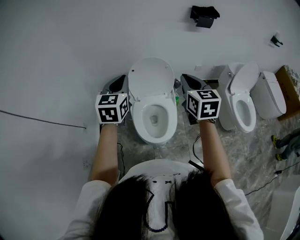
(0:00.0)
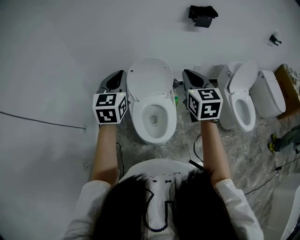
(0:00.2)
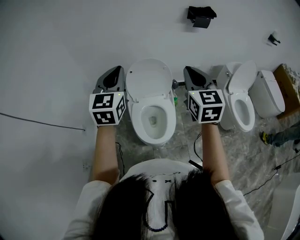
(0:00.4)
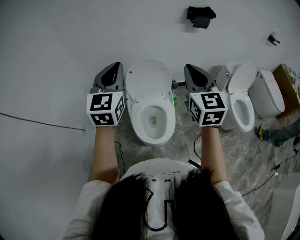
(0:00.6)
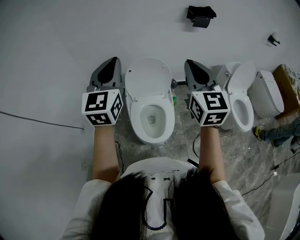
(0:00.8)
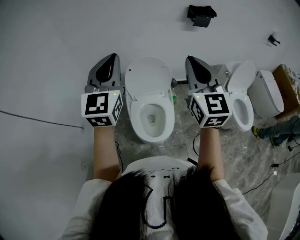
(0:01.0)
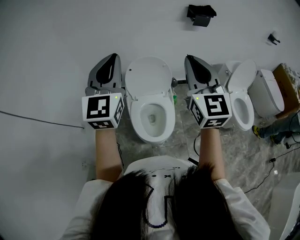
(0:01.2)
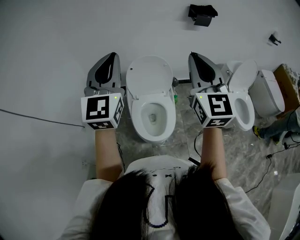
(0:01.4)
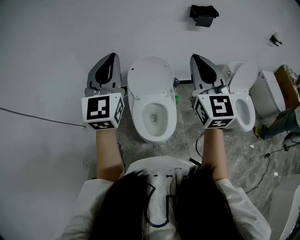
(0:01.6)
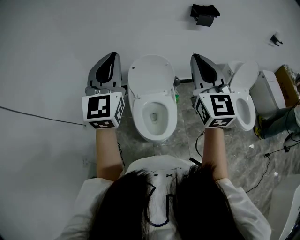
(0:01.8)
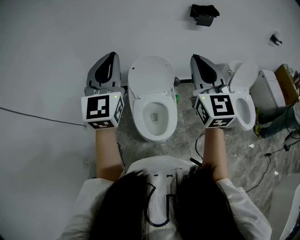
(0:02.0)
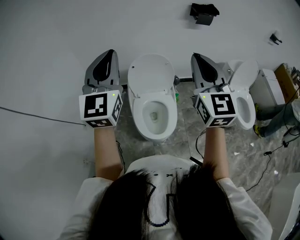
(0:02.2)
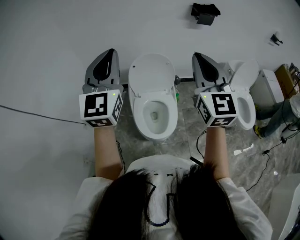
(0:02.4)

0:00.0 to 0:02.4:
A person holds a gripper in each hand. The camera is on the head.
0:00.0 to 0:01.2: The two grippers go about 15 cm upward. The left gripper turns by some 30 degrees, while the right gripper turns by approximately 30 degrees.
0:01.2 to 0:02.4: The grippers stay close to where they were, moving slightly.

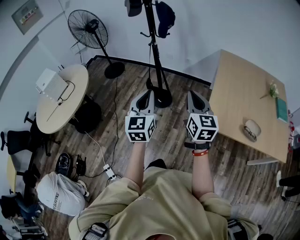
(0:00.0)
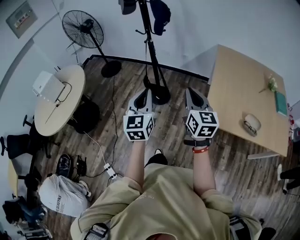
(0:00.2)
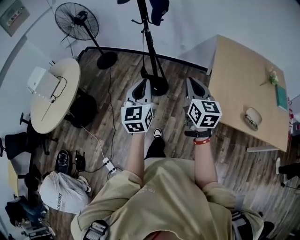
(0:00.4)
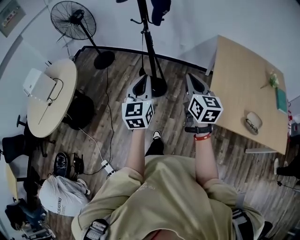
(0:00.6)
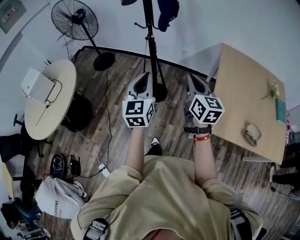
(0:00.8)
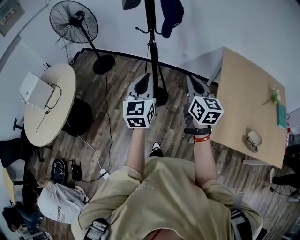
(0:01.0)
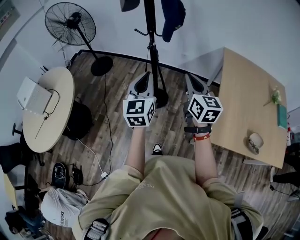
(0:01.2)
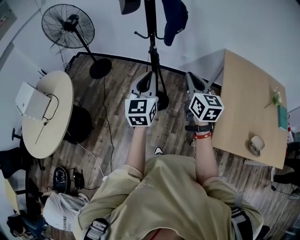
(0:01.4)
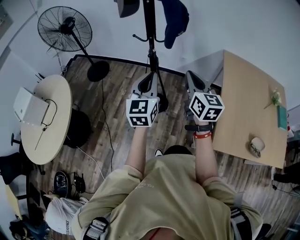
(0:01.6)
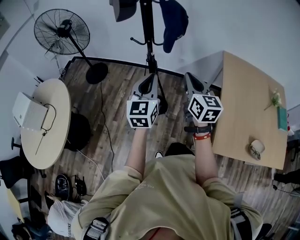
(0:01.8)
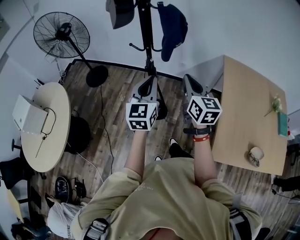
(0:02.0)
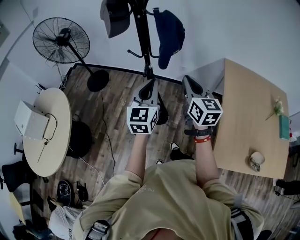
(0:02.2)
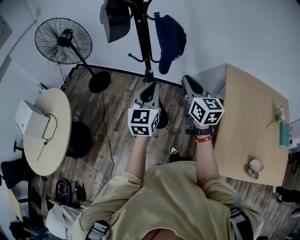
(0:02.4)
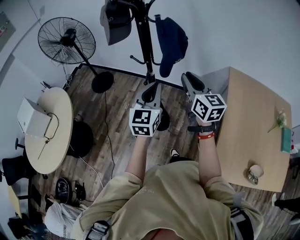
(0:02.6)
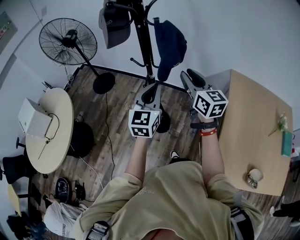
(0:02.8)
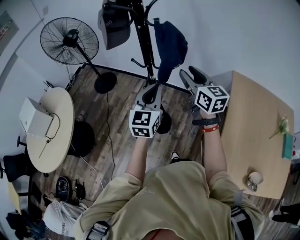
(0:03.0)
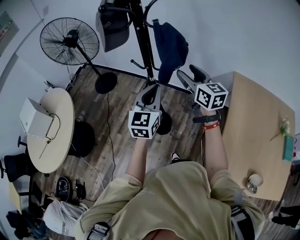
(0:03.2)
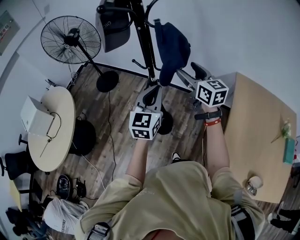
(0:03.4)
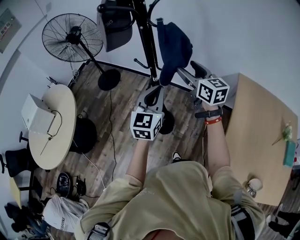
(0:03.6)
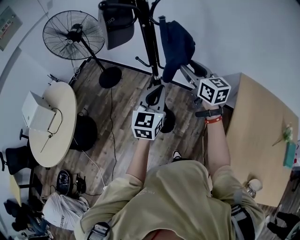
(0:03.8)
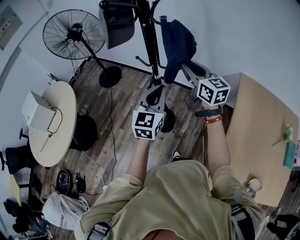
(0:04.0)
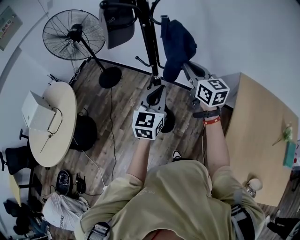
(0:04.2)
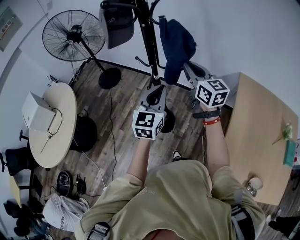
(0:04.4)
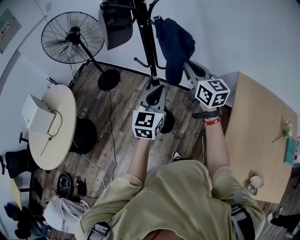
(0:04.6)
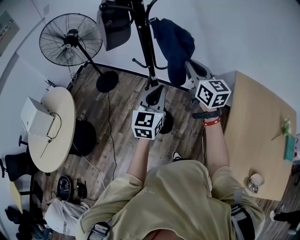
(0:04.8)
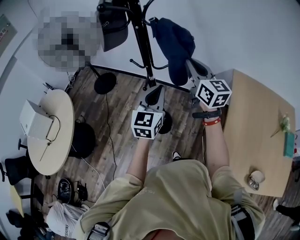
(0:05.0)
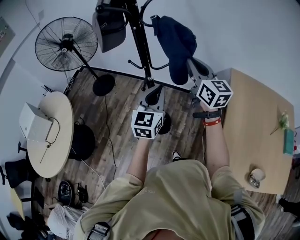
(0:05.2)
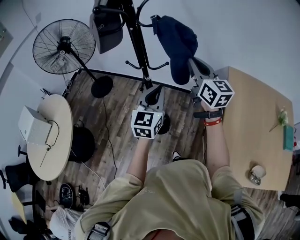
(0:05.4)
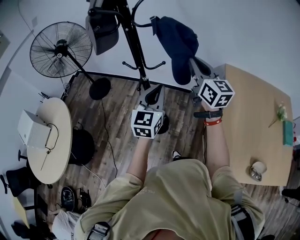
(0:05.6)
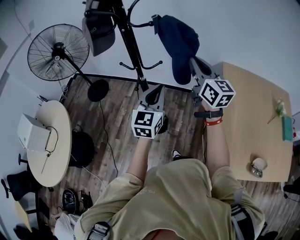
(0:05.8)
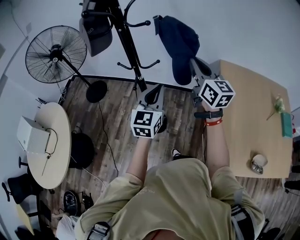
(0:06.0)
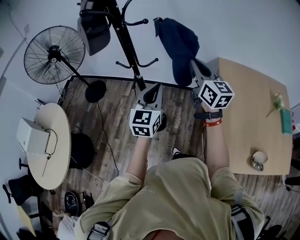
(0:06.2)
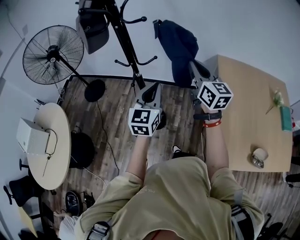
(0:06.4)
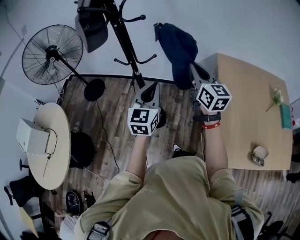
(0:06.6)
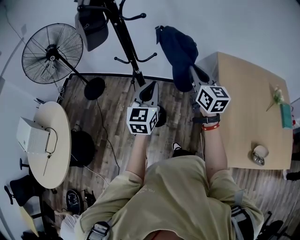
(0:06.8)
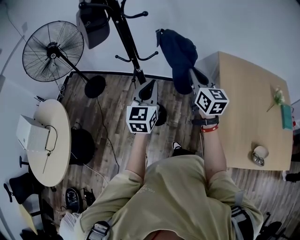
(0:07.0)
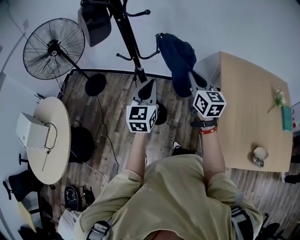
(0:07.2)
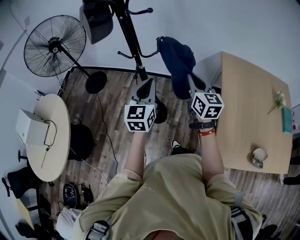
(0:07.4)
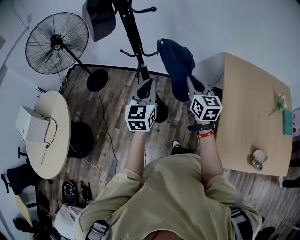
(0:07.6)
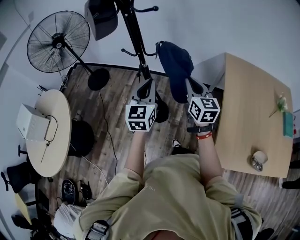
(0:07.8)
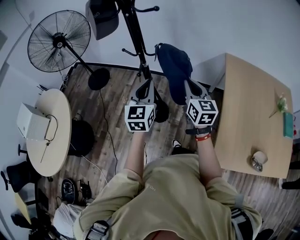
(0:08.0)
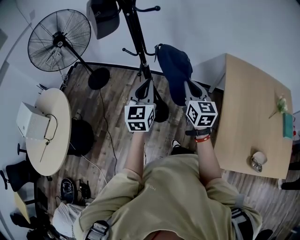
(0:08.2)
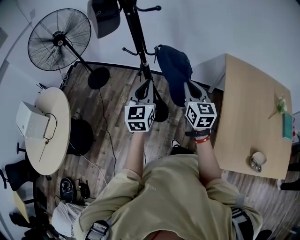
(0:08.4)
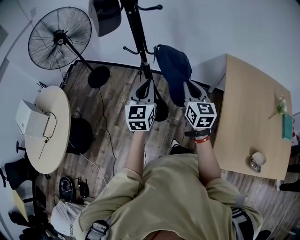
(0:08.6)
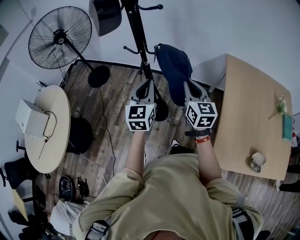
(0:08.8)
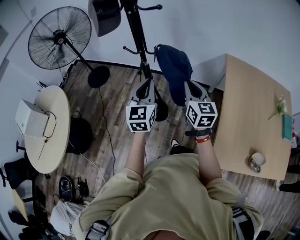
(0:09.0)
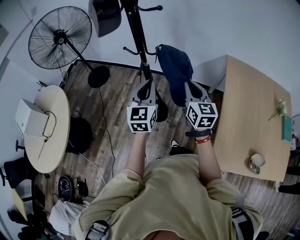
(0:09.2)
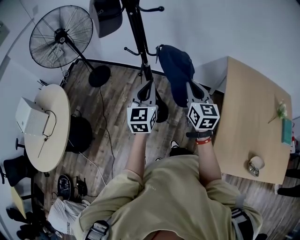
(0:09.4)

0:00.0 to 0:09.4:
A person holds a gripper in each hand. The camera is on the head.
0:00.0 to 0:01.6: The two grippers go some 35 cm forward.
0:01.6 to 0:03.2: The right gripper travels forward by some 25 cm, and opens up, while the left gripper moves forward and to the right, approximately 20 cm.
0:03.2 to 0:04.8: The right gripper closes its fingers.
0:04.8 to 0:06.2: The left gripper moves approximately 5 cm. Meanwhile the right gripper shifts about 10 cm to the right and backward.
0:06.2 to 0:07.8: The right gripper travels downward by roughly 10 cm, while the left gripper shifts approximately 5 cm to the left.
0:07.8 to 0:09.4: The grippers move only a little.

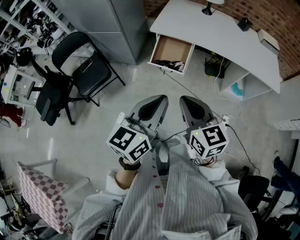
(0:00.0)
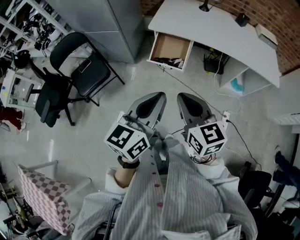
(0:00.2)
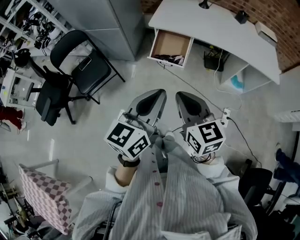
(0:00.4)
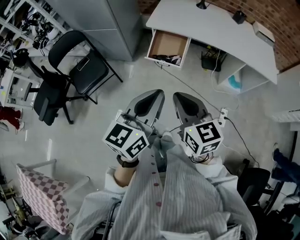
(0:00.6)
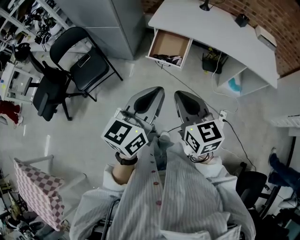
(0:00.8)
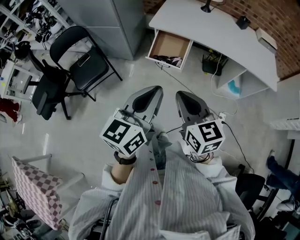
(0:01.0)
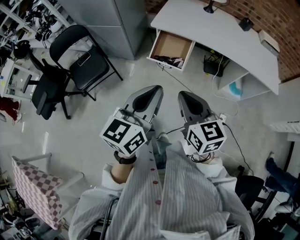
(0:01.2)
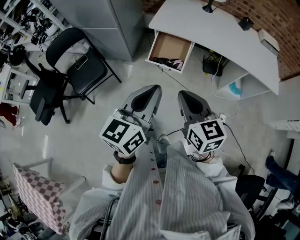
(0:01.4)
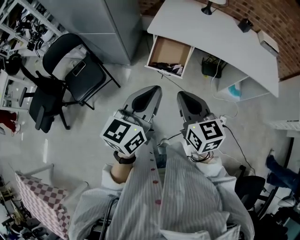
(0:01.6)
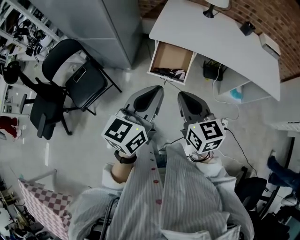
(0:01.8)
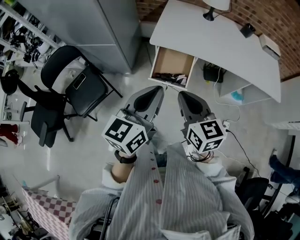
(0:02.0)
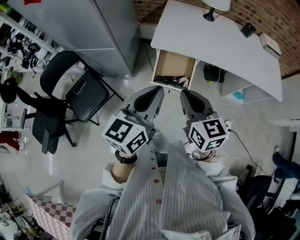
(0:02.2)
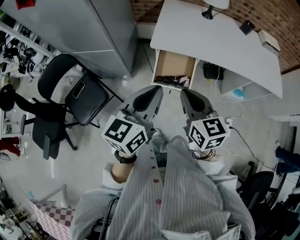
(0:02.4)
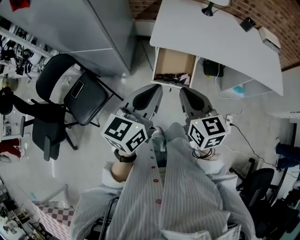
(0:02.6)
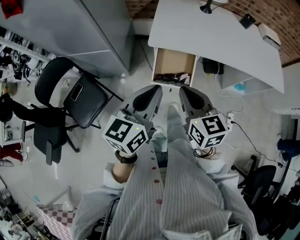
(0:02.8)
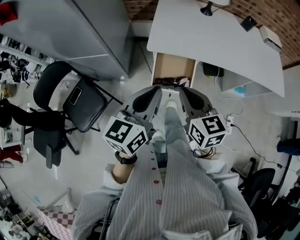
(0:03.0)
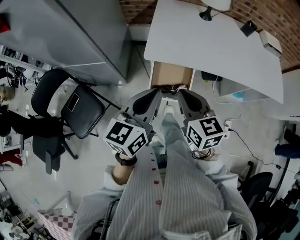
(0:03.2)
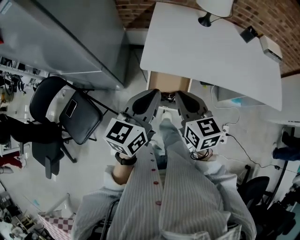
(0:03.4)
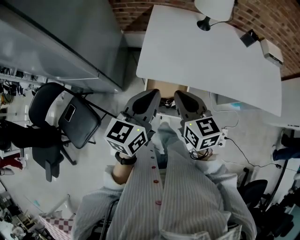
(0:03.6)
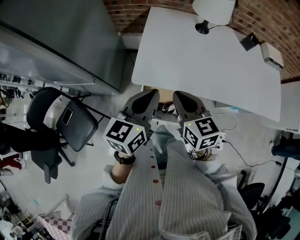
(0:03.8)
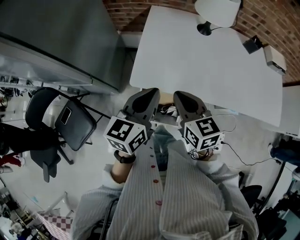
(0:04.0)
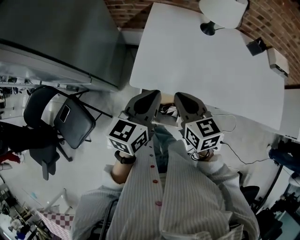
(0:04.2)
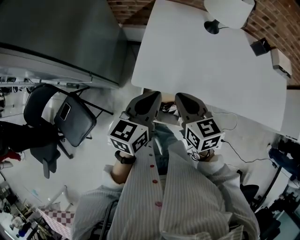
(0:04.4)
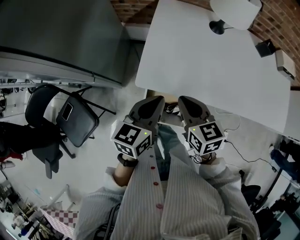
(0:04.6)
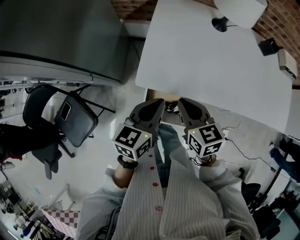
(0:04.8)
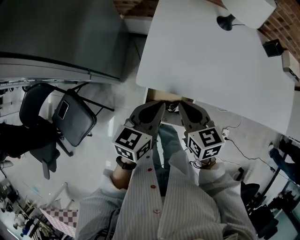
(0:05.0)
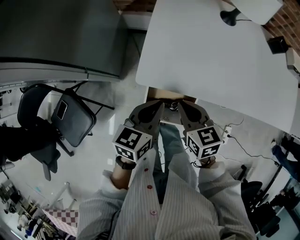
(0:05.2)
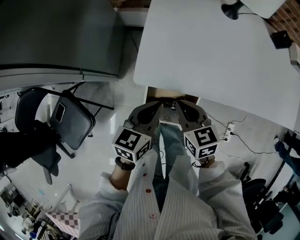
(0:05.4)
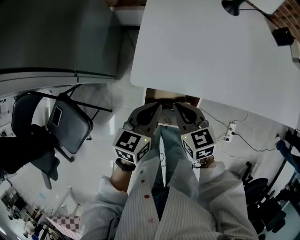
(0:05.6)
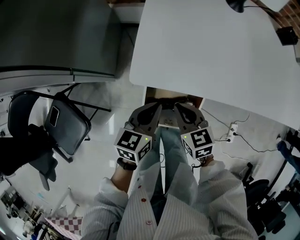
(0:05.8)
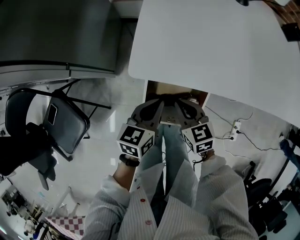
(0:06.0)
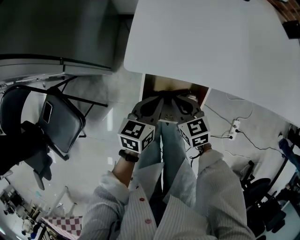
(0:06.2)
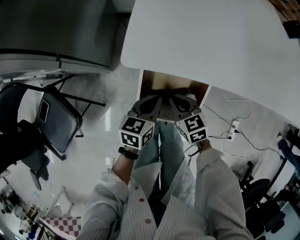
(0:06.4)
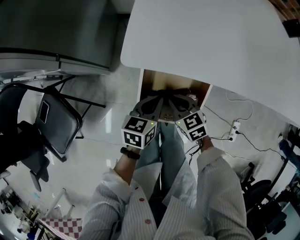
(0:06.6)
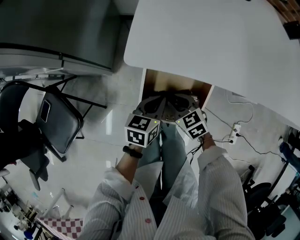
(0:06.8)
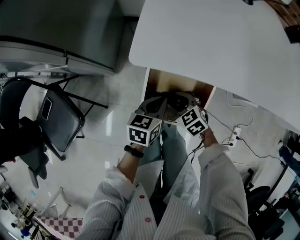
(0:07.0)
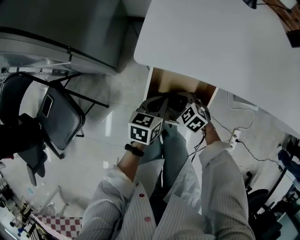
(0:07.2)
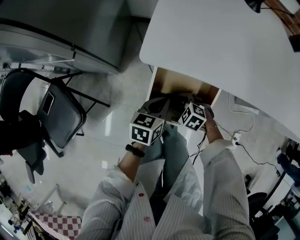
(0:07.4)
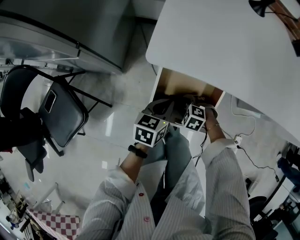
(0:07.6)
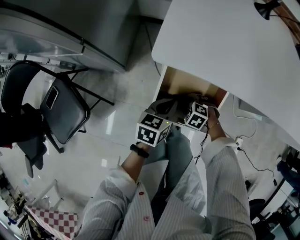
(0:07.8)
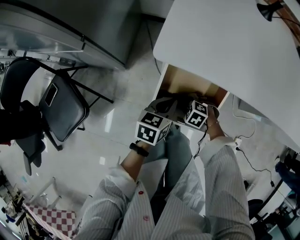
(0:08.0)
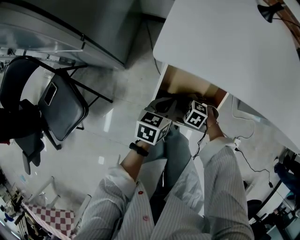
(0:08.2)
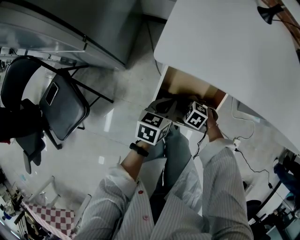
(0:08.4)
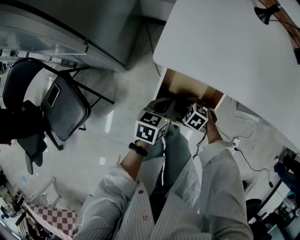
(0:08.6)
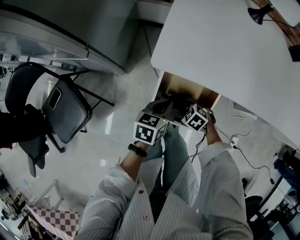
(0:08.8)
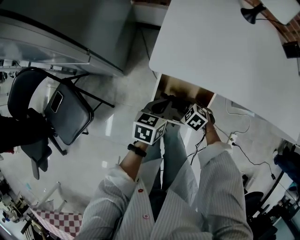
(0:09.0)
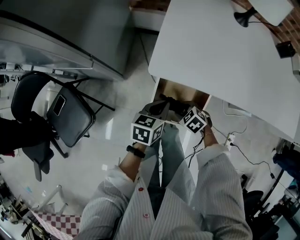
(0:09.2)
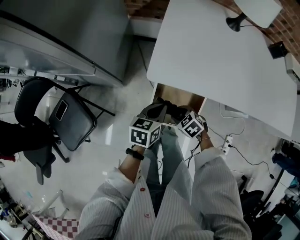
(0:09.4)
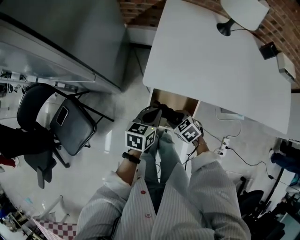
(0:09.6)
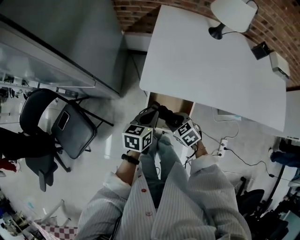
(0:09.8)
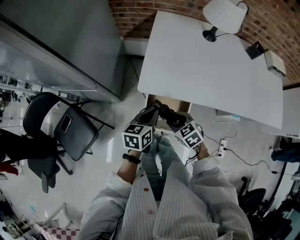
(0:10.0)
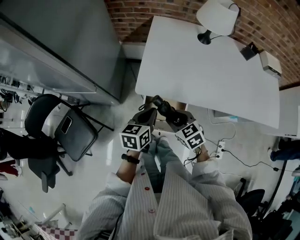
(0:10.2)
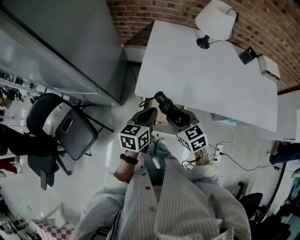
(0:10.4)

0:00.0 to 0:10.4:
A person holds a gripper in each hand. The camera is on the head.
0:00.0 to 0:01.4: The left gripper heads forward, covering approximately 5 cm; the right gripper shifts by roughly 5 cm.
0:01.4 to 0:03.0: Both grippers travel together forward, approximately 25 cm.
0:03.0 to 0:04.4: The grippers both shift forward by some 25 cm.
0:04.4 to 0:06.0: The grippers both shift downward by approximately 30 cm.
0:06.0 to 0:07.4: The right gripper is displaced downward by about 15 cm, rotates about 50 degrees, and opens up. Meanwhile the left gripper shifts some 10 cm downward.
0:07.4 to 0:09.0: Both grippers travel together upward, about 5 cm.
0:09.0 to 0:10.4: Both grippers move upward, some 30 cm. The right gripper points its fingers roughly 30 degrees further upward.

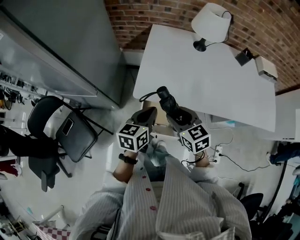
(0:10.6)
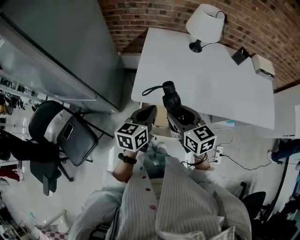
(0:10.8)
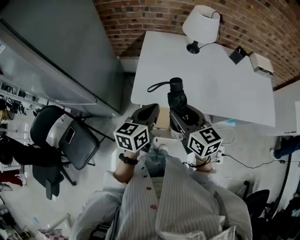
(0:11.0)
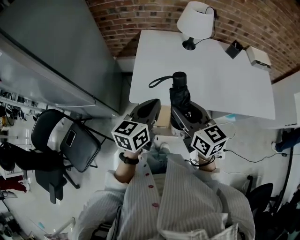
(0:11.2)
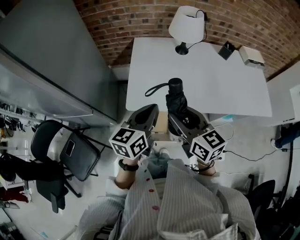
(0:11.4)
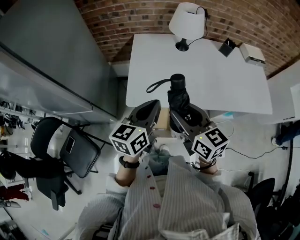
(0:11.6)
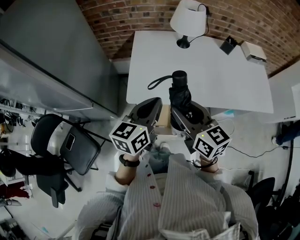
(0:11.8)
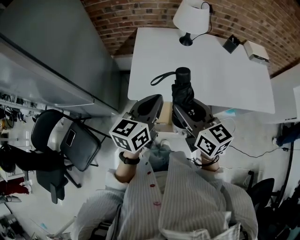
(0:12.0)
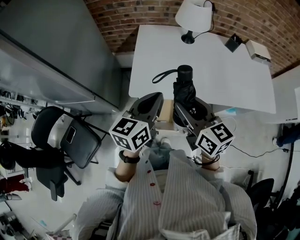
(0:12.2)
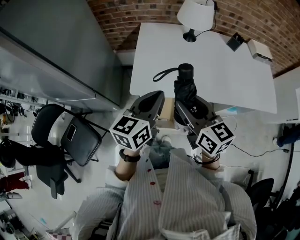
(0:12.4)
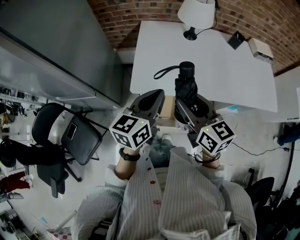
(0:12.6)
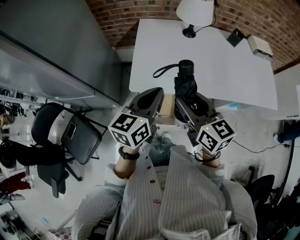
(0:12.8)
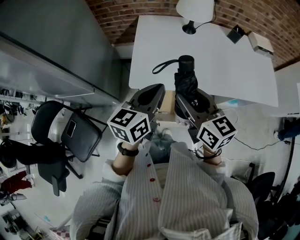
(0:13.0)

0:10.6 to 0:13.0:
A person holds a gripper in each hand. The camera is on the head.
0:10.6 to 0:11.8: Both grippers travel together upward, approximately 15 cm. The right gripper swivels about 20 degrees.
0:11.8 to 0:13.0: Both grippers stay about where they are.
